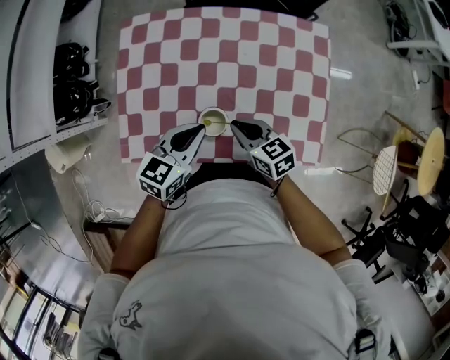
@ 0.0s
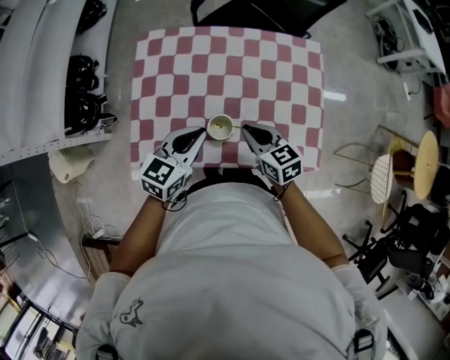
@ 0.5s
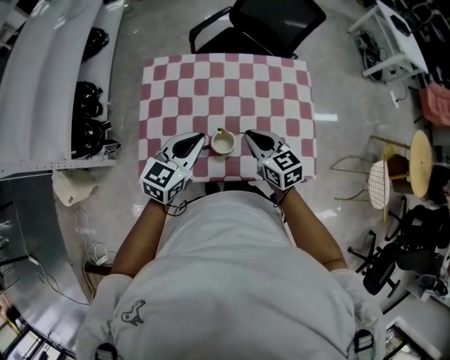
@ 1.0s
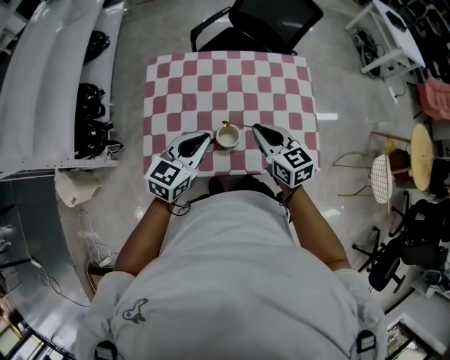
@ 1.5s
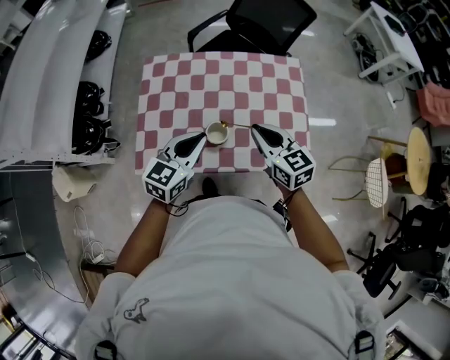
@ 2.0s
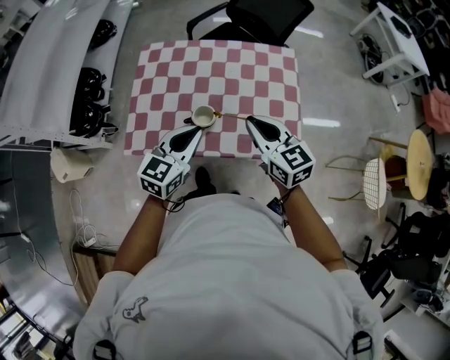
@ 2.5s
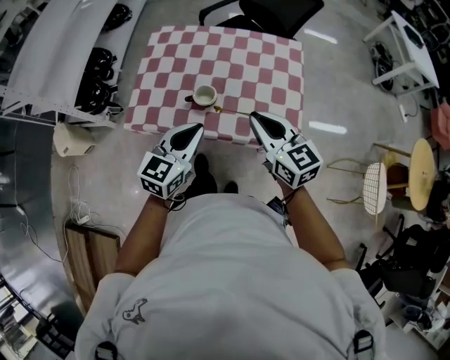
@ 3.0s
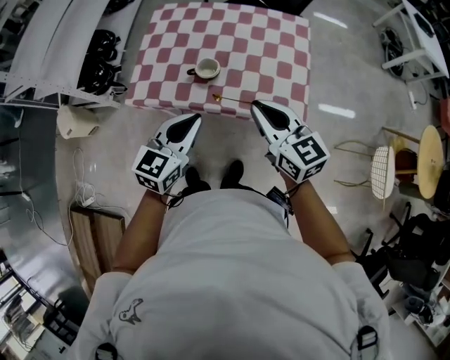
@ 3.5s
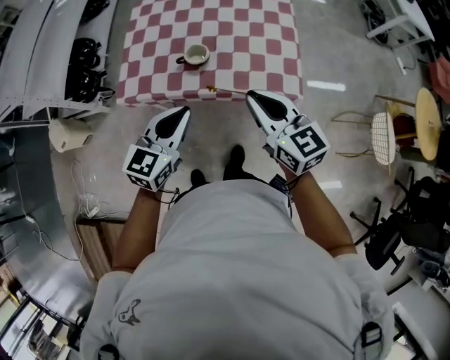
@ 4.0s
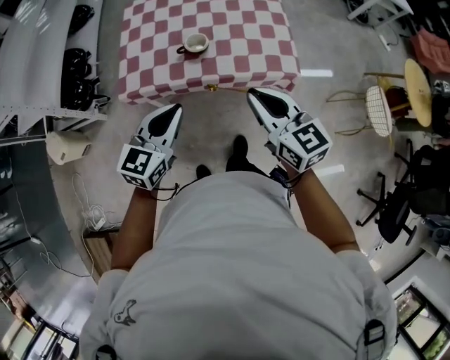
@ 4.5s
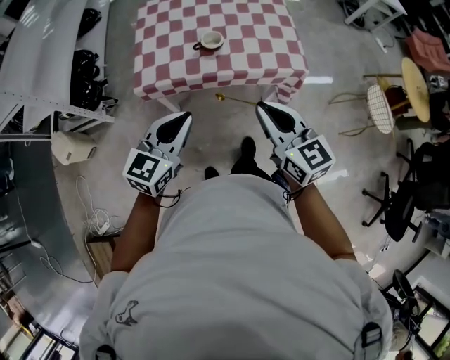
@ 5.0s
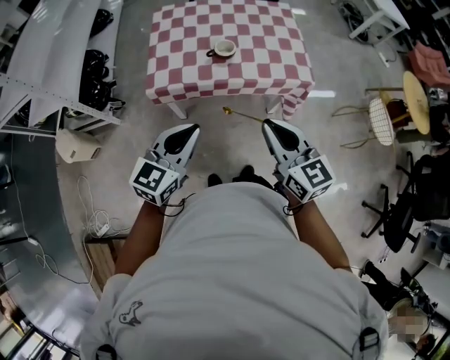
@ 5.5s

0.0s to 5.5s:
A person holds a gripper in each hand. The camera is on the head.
0.0s to 2.0s: The left gripper moves upward and backward, some 15 cm, while the right gripper travels upward by some 15 cm, and rotates some 20 degrees.
2.0s to 3.5s: The two grippers go some 20 cm backward.
3.5s to 5.5s: The grippers both shift backward and to the left by roughly 25 cm.

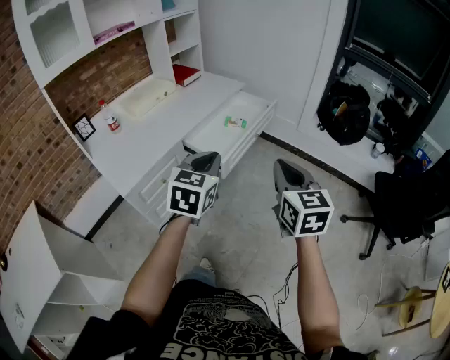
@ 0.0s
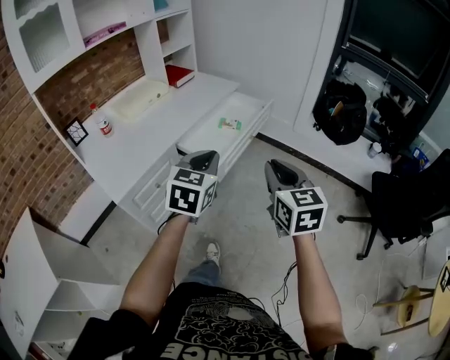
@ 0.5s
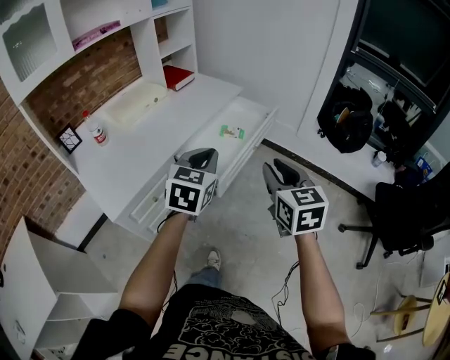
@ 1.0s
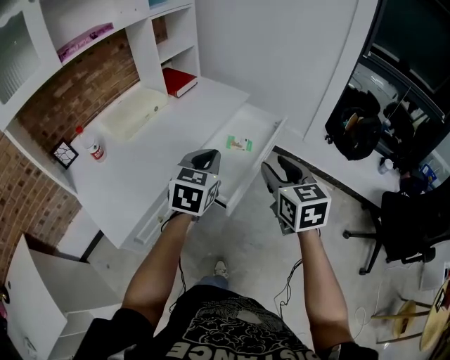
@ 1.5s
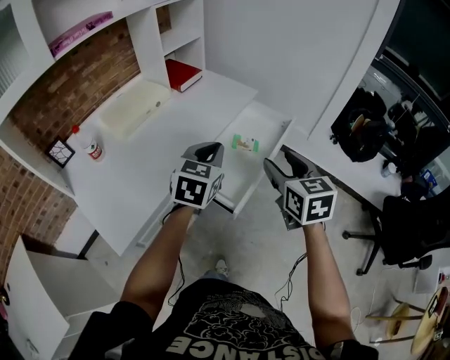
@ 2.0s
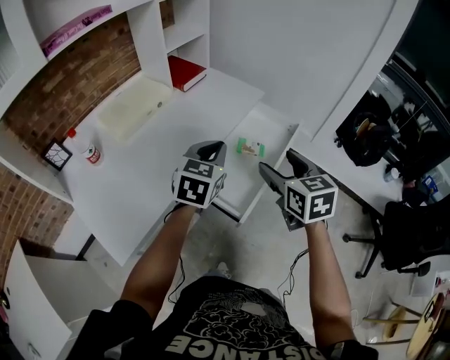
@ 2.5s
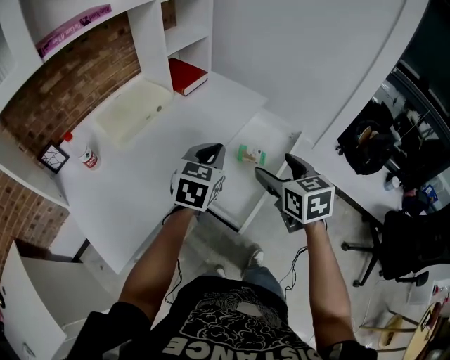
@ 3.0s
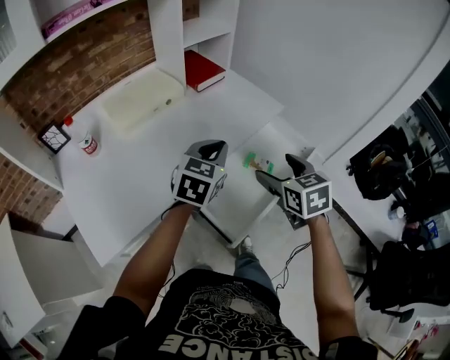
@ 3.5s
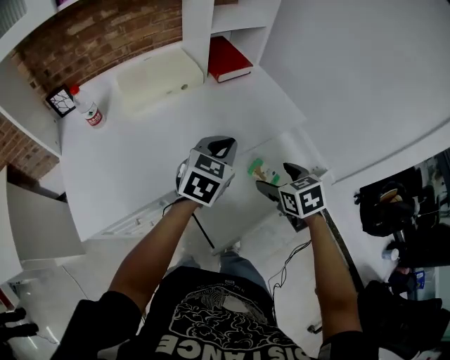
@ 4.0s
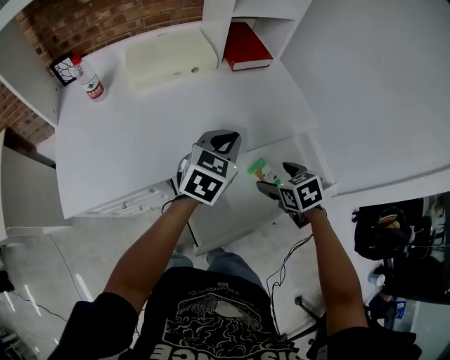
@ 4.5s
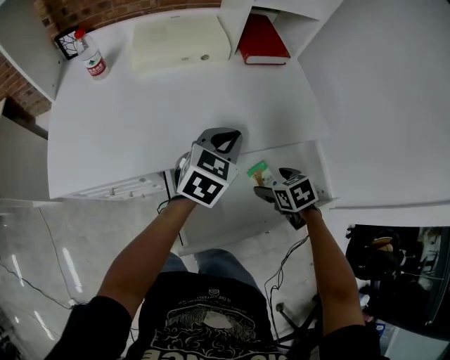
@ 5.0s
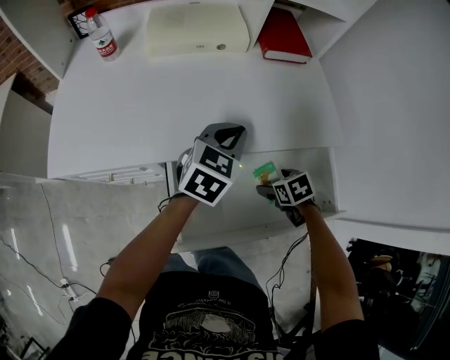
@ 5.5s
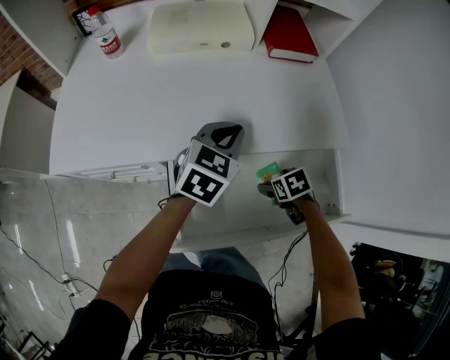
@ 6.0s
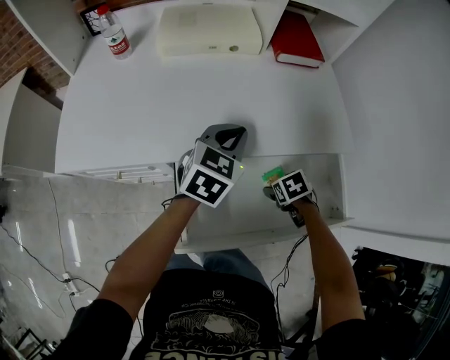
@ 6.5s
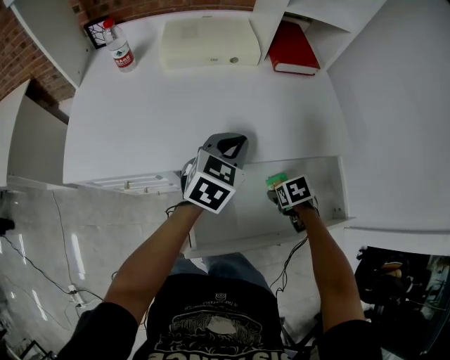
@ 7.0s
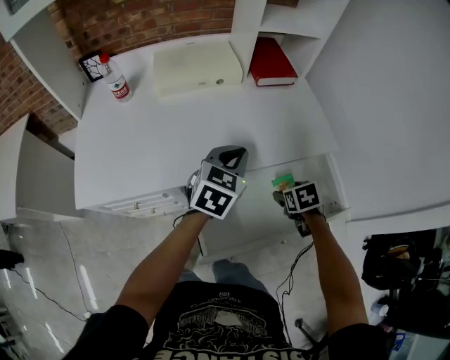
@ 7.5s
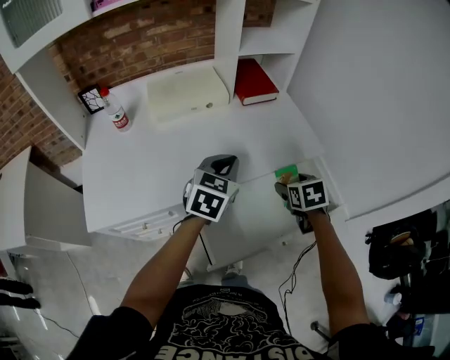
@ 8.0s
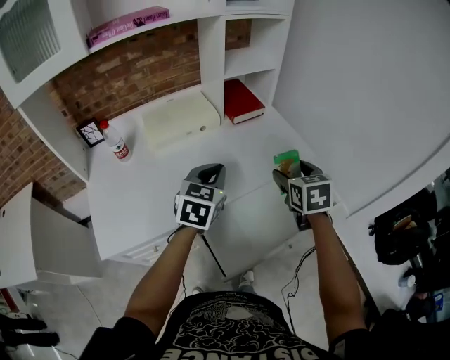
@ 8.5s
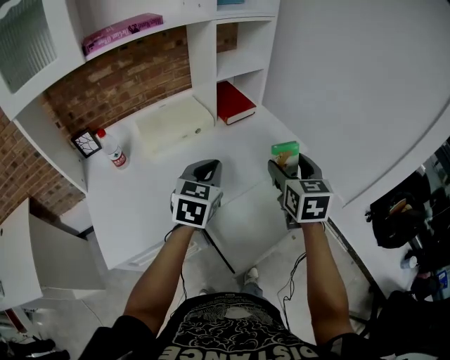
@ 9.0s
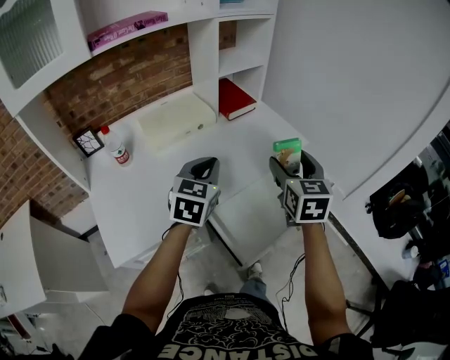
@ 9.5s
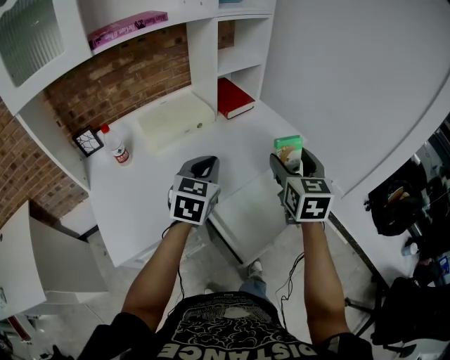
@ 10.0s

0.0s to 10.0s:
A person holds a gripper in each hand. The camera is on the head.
0.0s to 2.0s: The grippers both shift forward by some 30 cm. The right gripper opens up.
2.0s to 4.0s: Both grippers travel together forward and downward, roughly 25 cm. The right gripper changes its angle by some 40 degrees, and opens.
4.0s to 6.0s: The right gripper travels downward by some 20 cm, and changes its angle by approximately 40 degrees, while the left gripper goes some 10 cm downward, and swivels roughly 20 degrees.
6.0s to 8.0s: The right gripper moves upward, roughly 20 cm, and rotates roughly 30 degrees, while the left gripper travels upward by approximately 10 cm.
8.0s to 10.0s: The right gripper heads upward, covering some 20 cm, and tilts its fingers about 40 degrees upward. Meanwhile the left gripper moves to the left, upward and backward, some 10 cm.

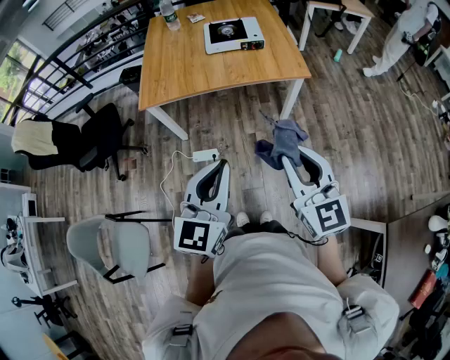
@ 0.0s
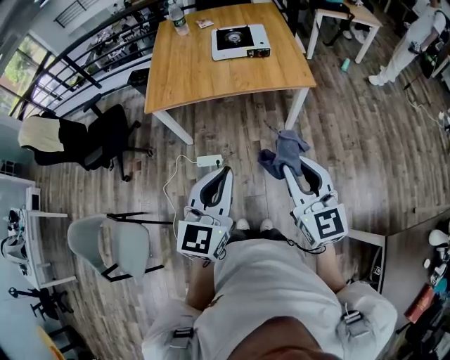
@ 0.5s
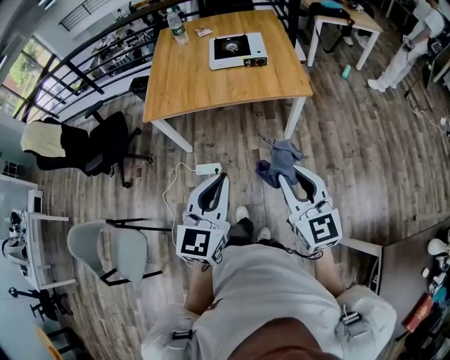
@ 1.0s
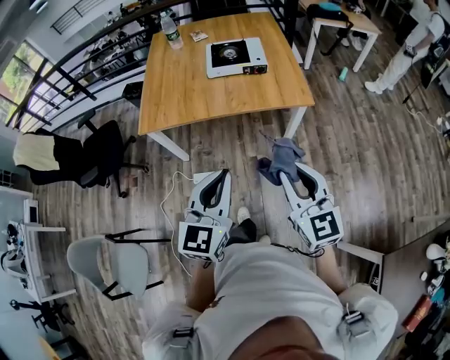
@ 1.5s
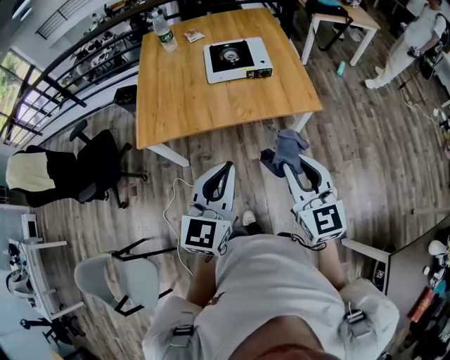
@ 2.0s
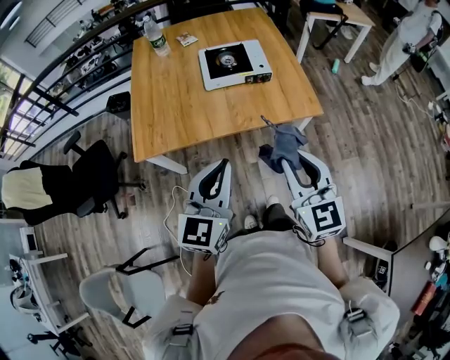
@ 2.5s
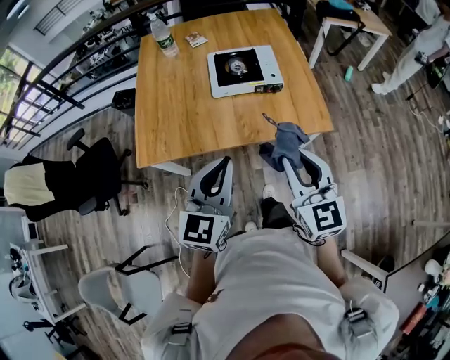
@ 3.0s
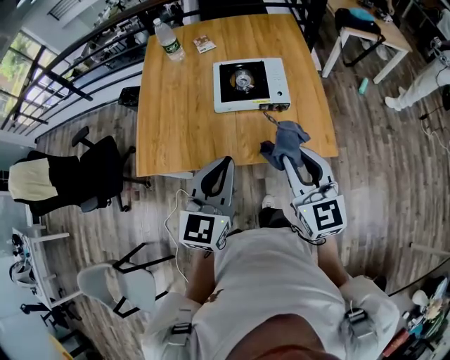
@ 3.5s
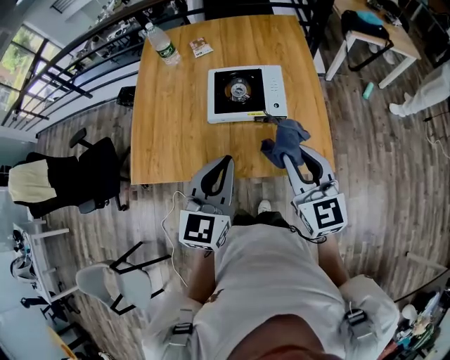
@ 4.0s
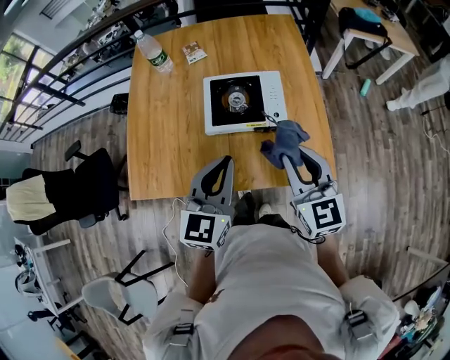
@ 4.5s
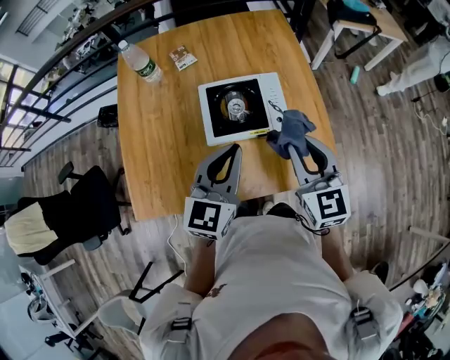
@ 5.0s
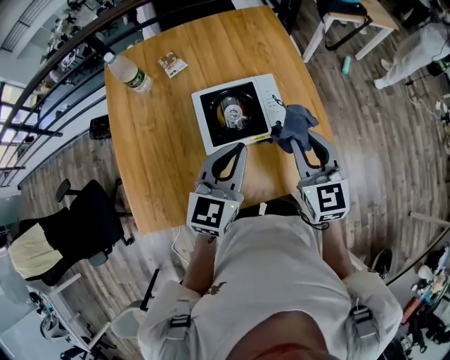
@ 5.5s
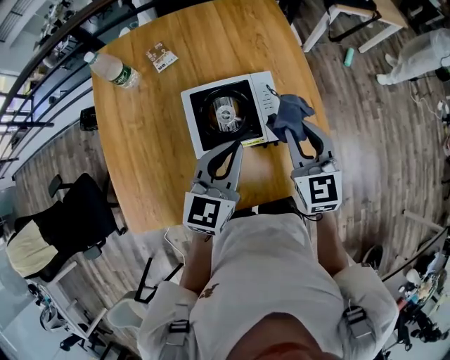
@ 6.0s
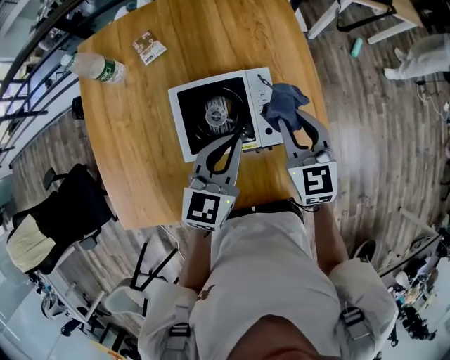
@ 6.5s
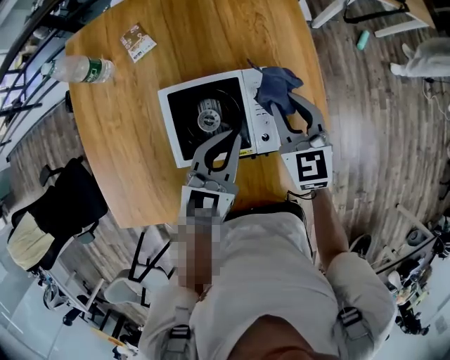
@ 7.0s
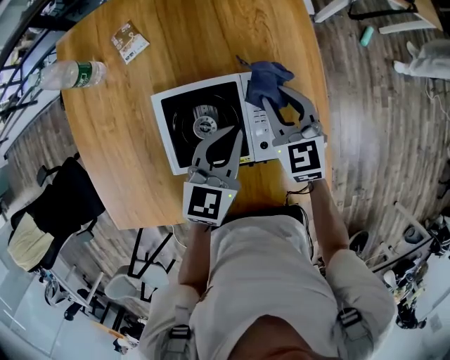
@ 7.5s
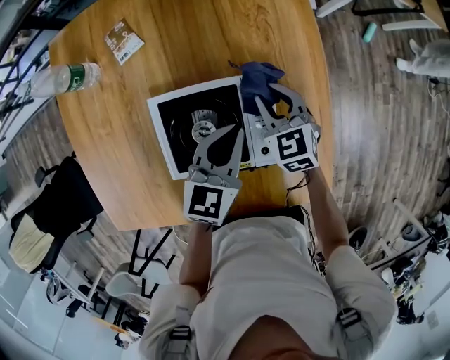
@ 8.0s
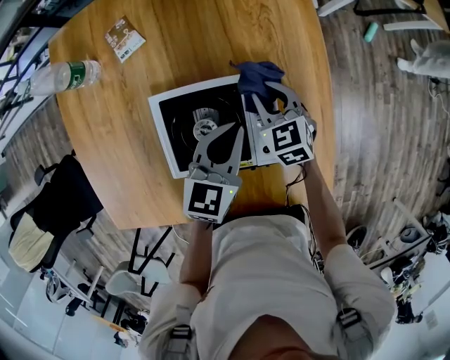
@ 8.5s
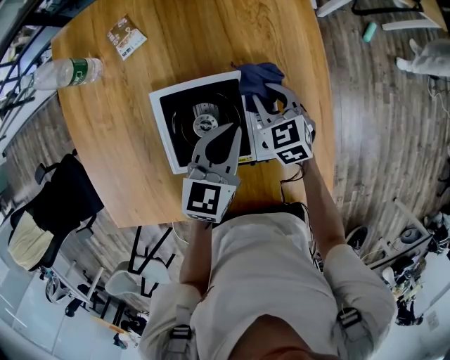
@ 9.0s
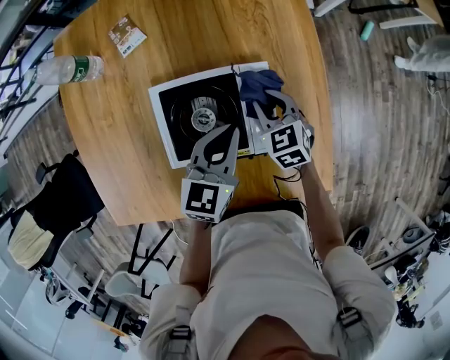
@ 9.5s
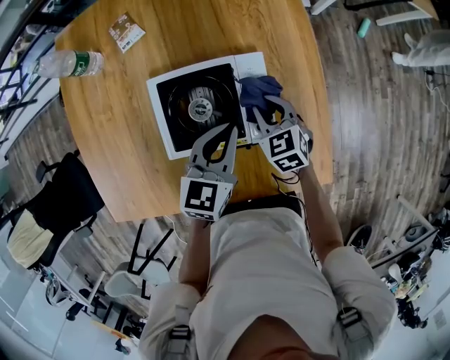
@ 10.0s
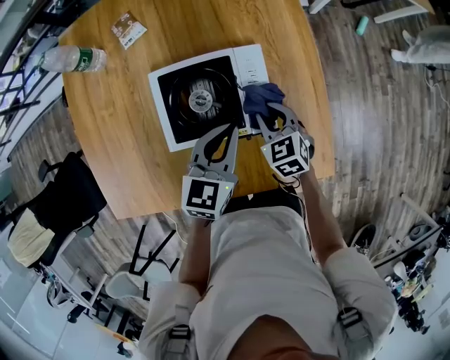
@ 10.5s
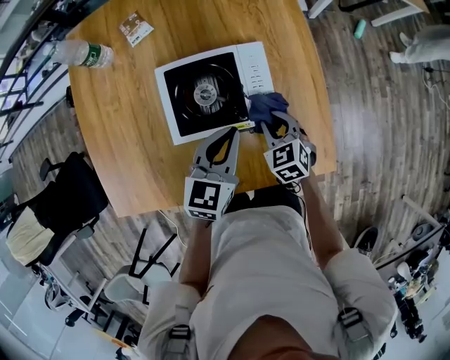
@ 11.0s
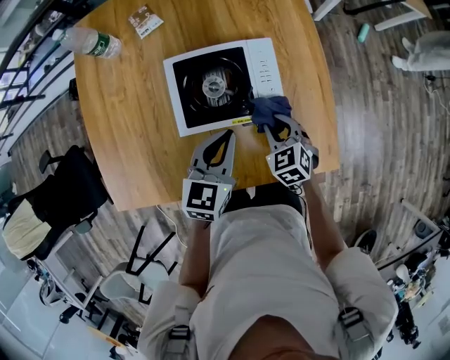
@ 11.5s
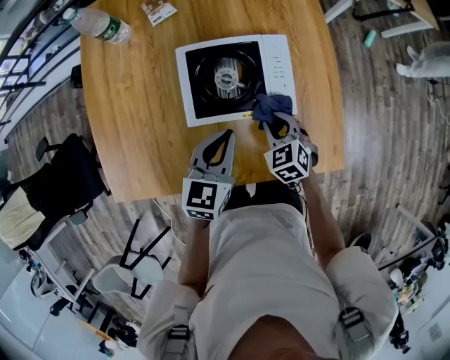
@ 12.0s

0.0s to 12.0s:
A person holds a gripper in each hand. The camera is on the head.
0.0s to 2.0s: Both grippers travel together forward, approximately 20 cm.
2.0s to 4.0s: The two grippers go some 30 cm forward.
4.0s to 6.0s: Both grippers travel together forward, roughly 25 cm. The right gripper swivels some 20 degrees.
6.0s to 8.0s: The right gripper travels downward and forward by some 25 cm, and changes its angle by about 20 degrees, while the left gripper is displaced forward and downward by approximately 20 cm.
8.0s to 10.0s: The grippers both shift backward by approximately 10 cm.
10.0s to 12.0s: The left gripper is displaced backward and to the left by approximately 15 cm. Meanwhile the right gripper heads backward, covering about 10 cm.
